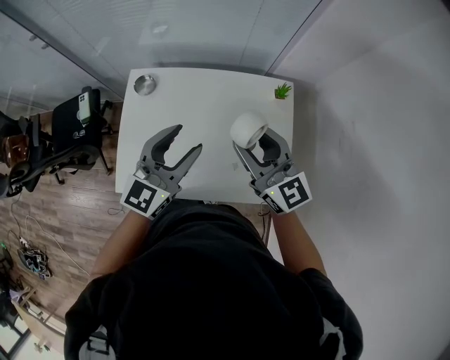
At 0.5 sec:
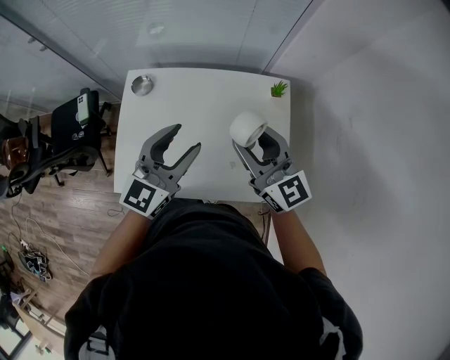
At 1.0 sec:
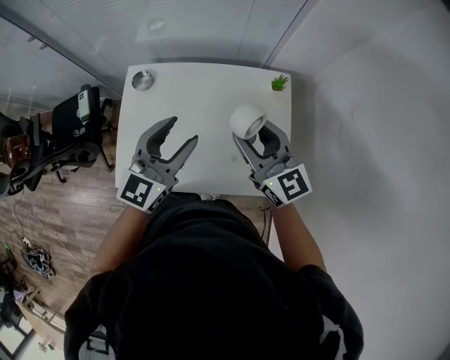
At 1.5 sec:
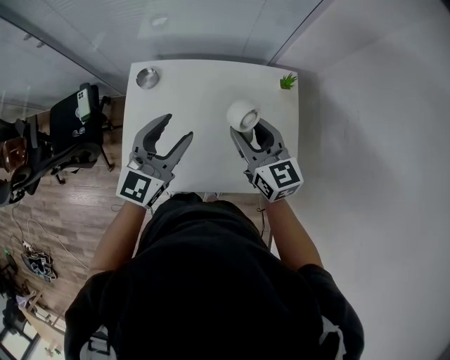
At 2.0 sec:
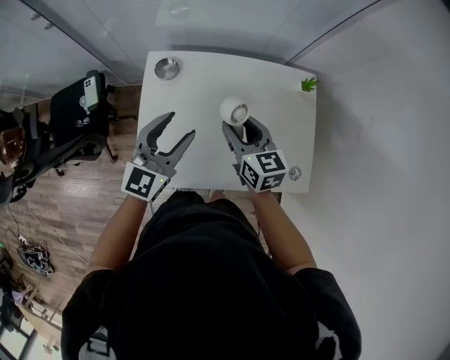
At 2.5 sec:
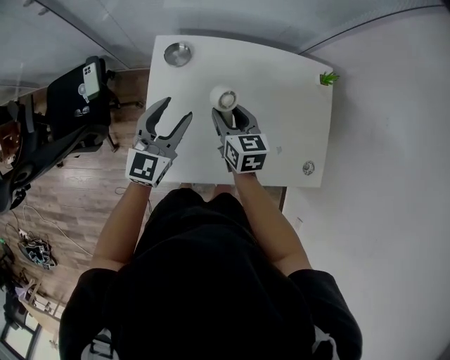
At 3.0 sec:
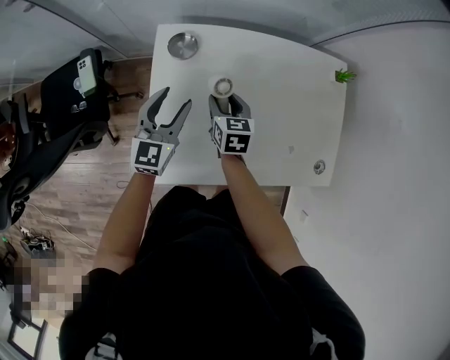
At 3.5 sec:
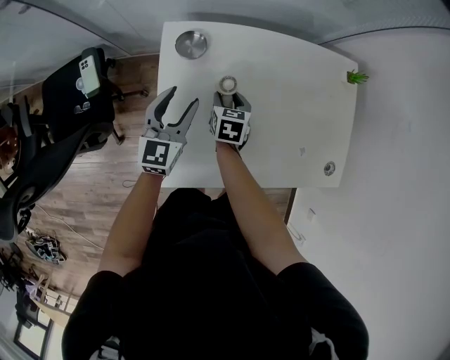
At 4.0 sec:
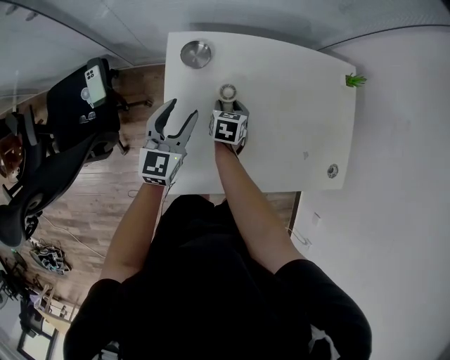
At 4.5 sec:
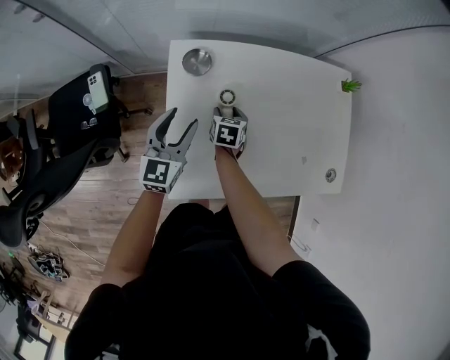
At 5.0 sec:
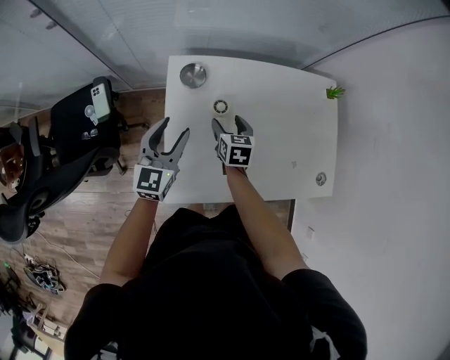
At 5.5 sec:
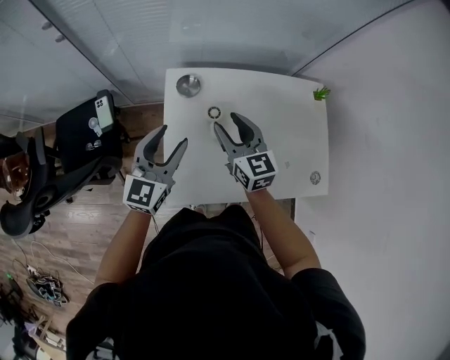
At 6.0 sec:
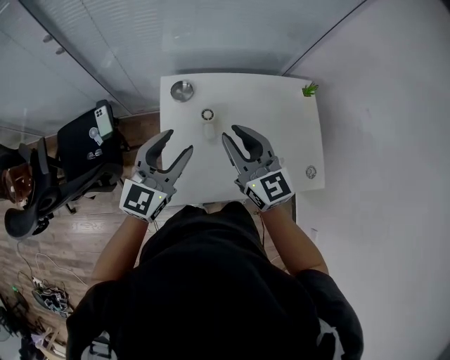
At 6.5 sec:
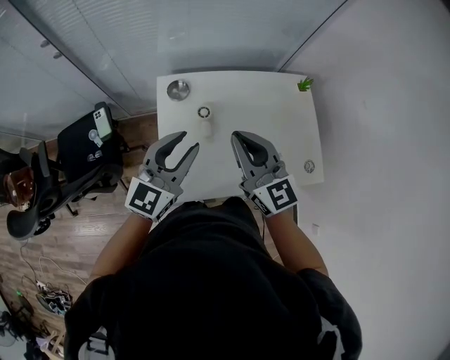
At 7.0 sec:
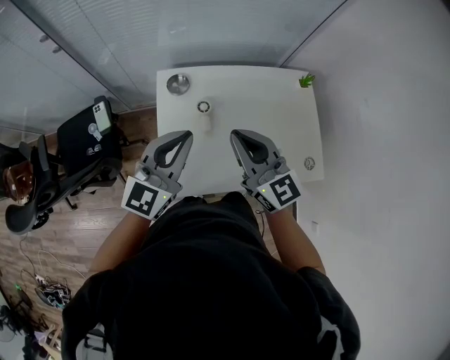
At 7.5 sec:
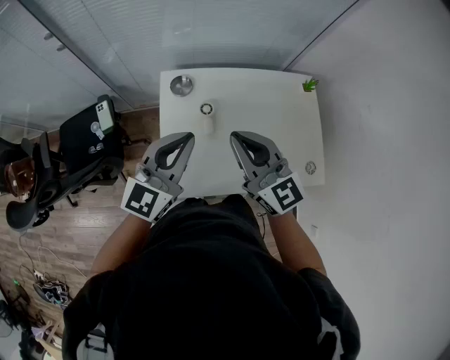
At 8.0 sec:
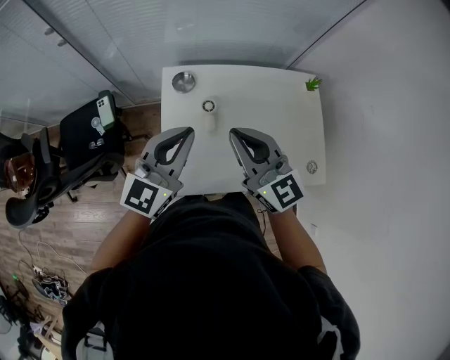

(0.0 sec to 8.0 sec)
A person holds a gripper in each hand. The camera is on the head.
0.0 sec - 2.0 sec: The left gripper moves to the left, roughly 15 cm, while the right gripper is displaced to the left and downward by approximately 20 cm, and swivels roughly 30 degrees.
2.0 sec - 4.0 sec: Both grippers move downward and to the left, some 30 cm. The right gripper tips its fingers downward by roughly 30 degrees.
4.0 sec - 6.0 sec: The left gripper goes approximately 25 cm upward and backward. Meanwhile the right gripper moves upward, about 40 cm, and tips its fingers upward by about 50 degrees.
6.0 sec - 8.0 sec: The left gripper closes up. Meanwhile the right gripper ends up about 5 cm from where it was.

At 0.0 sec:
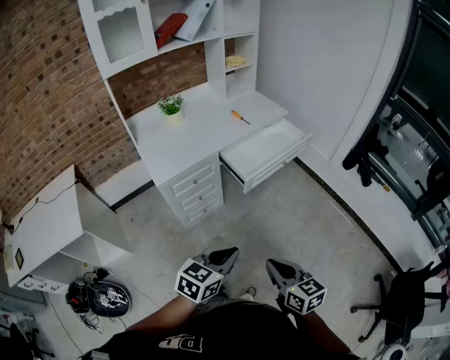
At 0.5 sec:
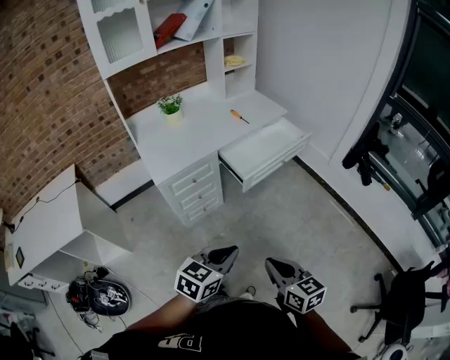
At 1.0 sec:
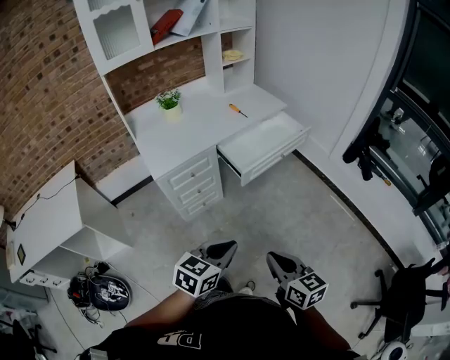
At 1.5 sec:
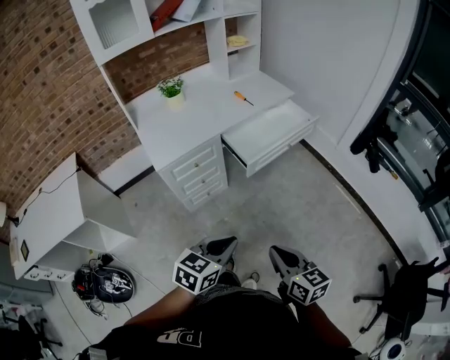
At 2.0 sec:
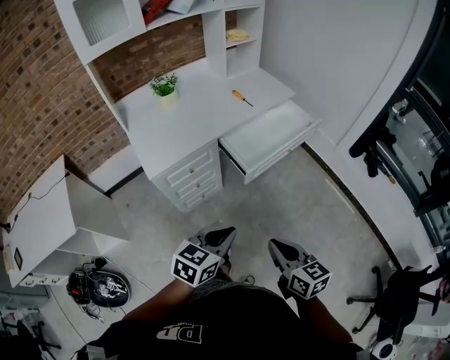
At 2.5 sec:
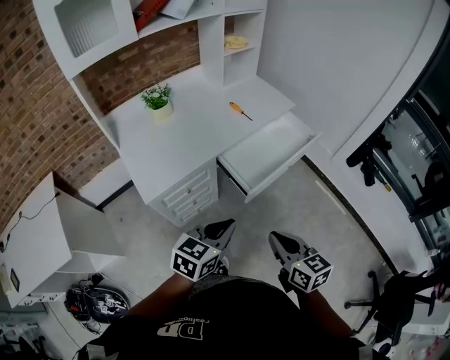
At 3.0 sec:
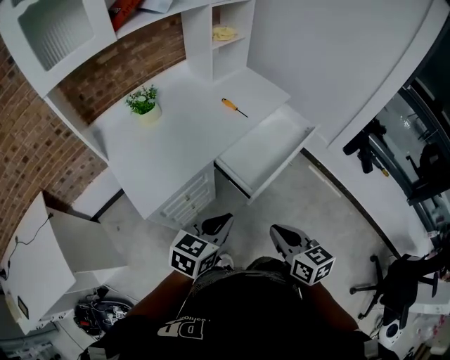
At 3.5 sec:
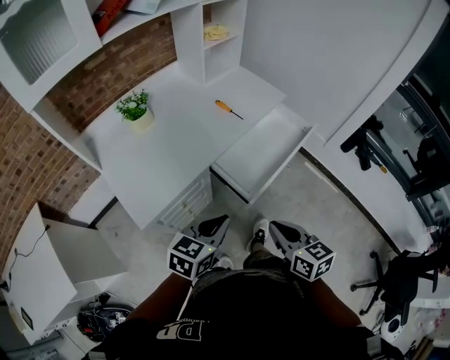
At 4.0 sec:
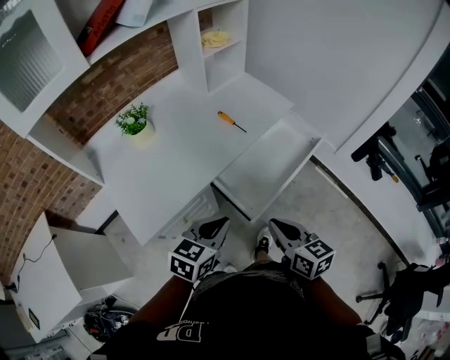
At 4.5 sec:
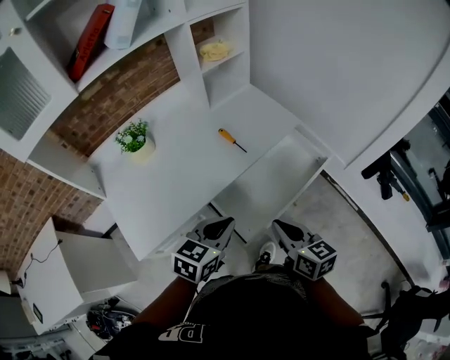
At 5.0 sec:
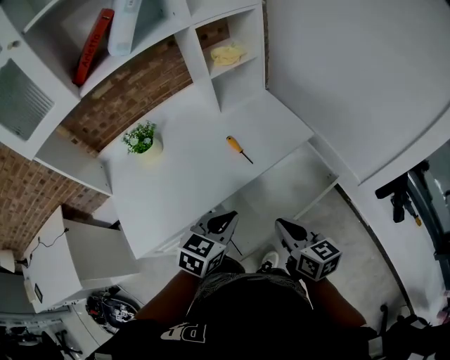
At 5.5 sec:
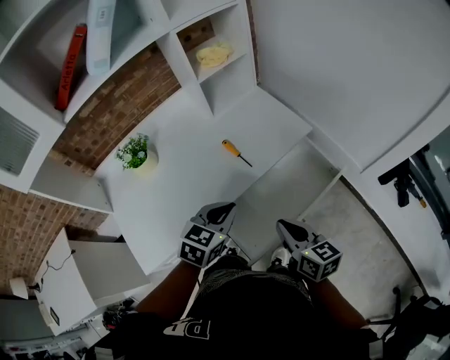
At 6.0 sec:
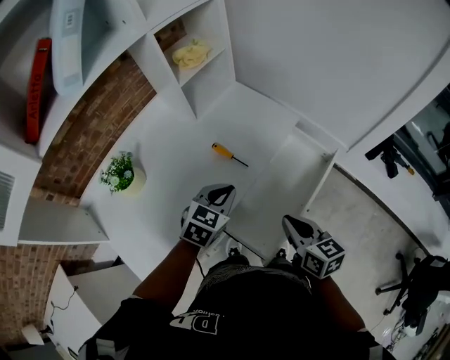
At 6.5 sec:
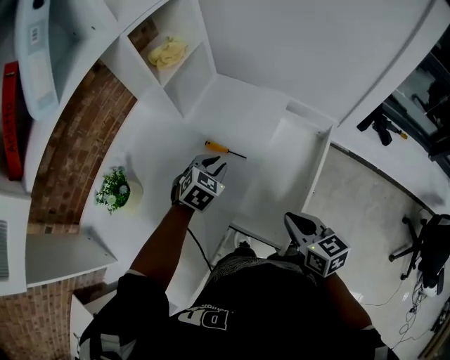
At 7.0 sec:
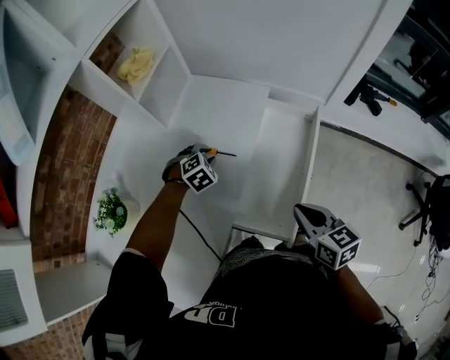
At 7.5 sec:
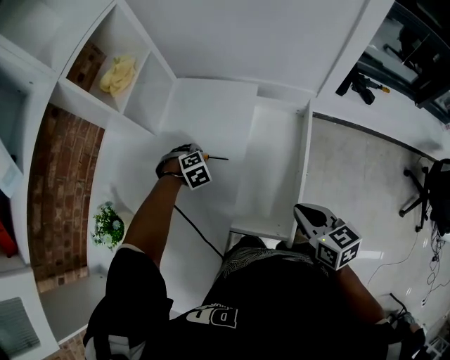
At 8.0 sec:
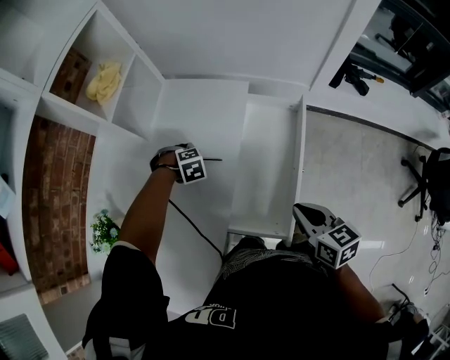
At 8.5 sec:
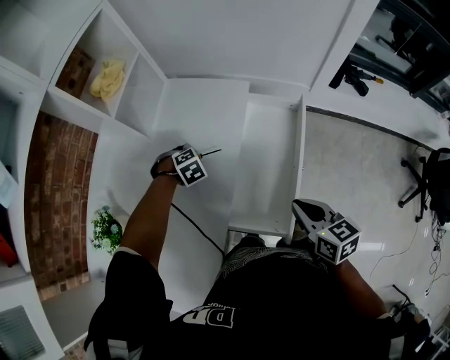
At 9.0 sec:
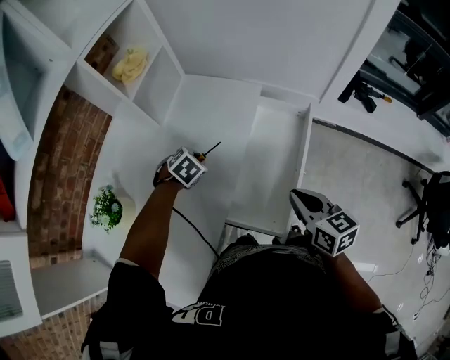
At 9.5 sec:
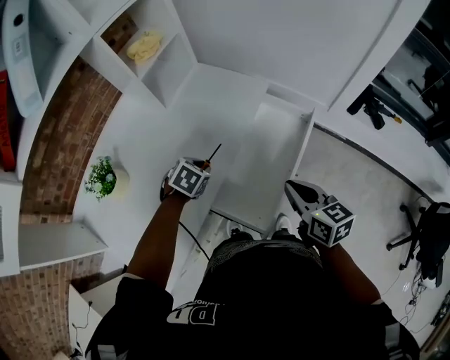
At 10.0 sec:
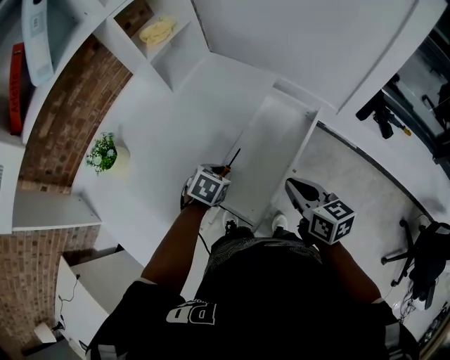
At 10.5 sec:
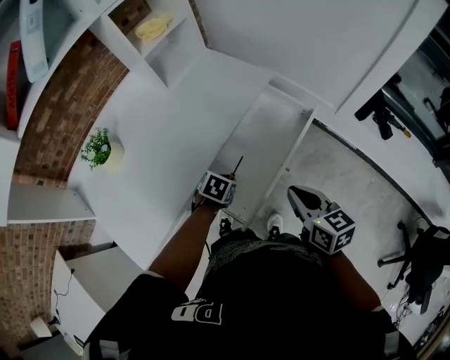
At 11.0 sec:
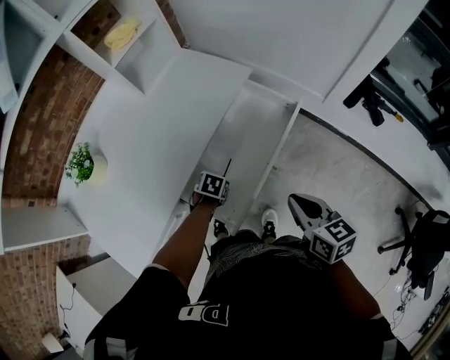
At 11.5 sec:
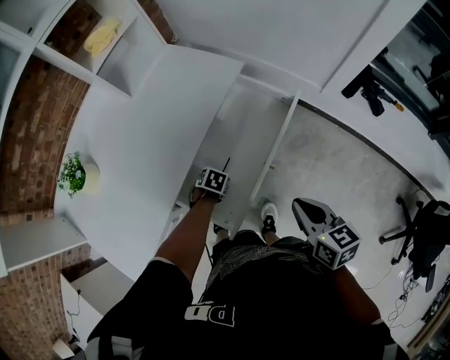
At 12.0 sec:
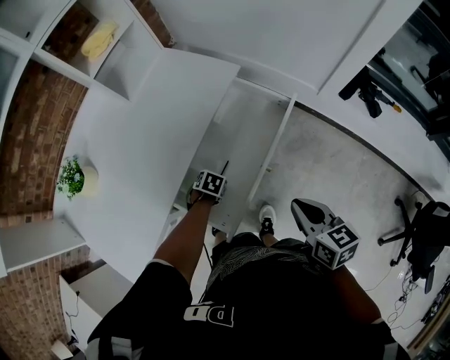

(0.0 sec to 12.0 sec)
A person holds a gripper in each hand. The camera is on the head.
0.0 sec - 2.0 sec: The grippers both shift forward by approximately 10 cm.
2.0 sec - 4.0 sec: The grippers both shift forward by approximately 30 cm.
4.0 sec - 6.0 sec: The two grippers go about 25 cm forward. The left gripper turns by about 20 degrees.
6.0 sec - 8.0 sec: The right gripper changes place by approximately 5 cm, and rotates some 20 degrees. Meanwhile the left gripper shifts some 20 cm downward, and tilts its fingers about 50 degrees downward.
8.0 sec - 10.0 sec: The left gripper shifts by some 25 cm, and rolls counterclockwise, seen from behind, by approximately 70 degrees; the right gripper shifts by some 5 cm, and turns by about 20 degrees.
10.0 sec - 12.0 sec: The right gripper moves about 10 cm. Meanwhile the left gripper heads downward, covering about 20 cm, and turns by some 20 degrees.

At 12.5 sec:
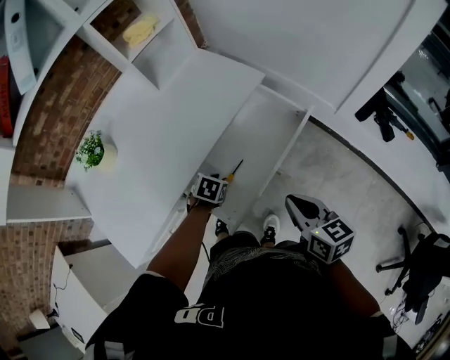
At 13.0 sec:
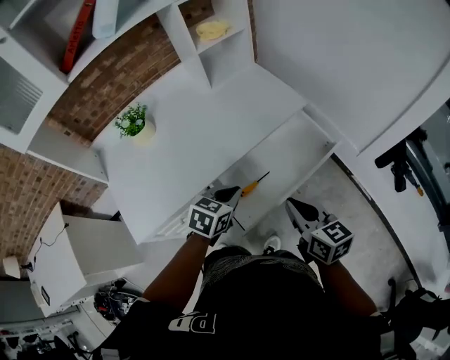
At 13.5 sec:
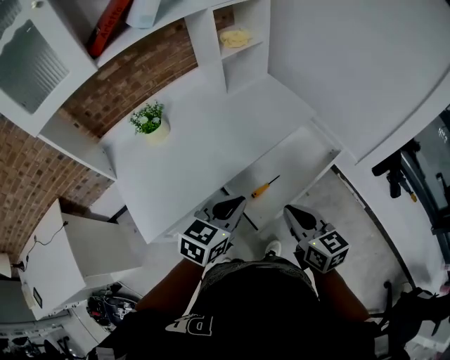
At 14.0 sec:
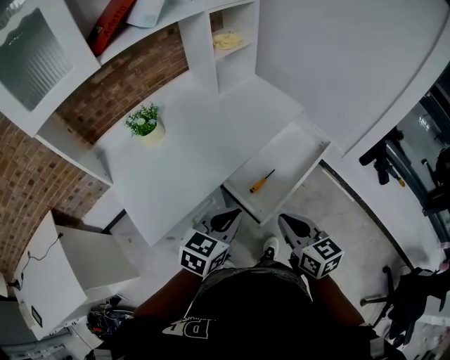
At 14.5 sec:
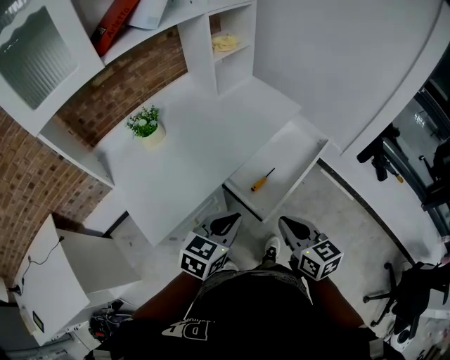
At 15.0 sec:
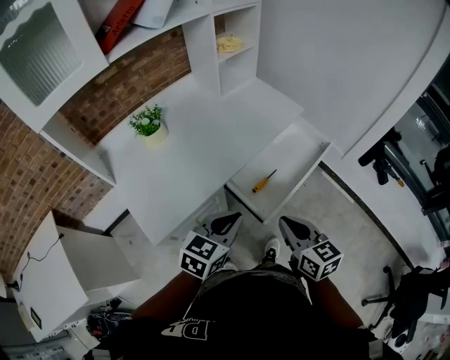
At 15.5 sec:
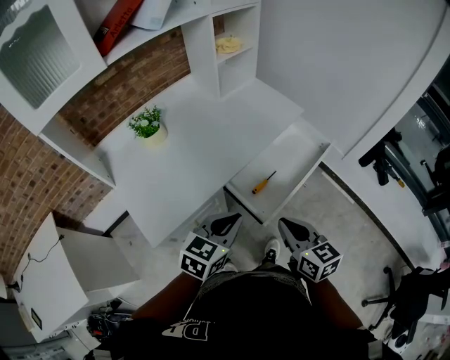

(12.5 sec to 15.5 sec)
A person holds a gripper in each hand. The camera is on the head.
12.5 sec - 14.0 sec: The left gripper heads upward and backward, covering approximately 35 cm, points its fingers approximately 40 degrees further upward, and closes up; the right gripper is displaced to the left and backward by roughly 20 cm.
14.0 sec - 15.5 sec: The grippers move only a little.

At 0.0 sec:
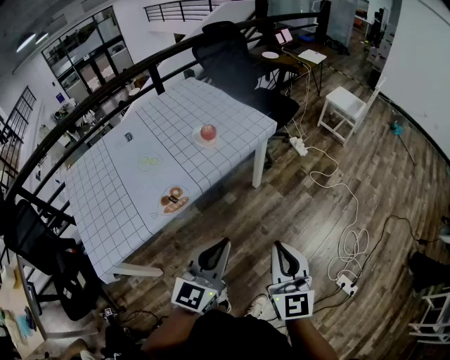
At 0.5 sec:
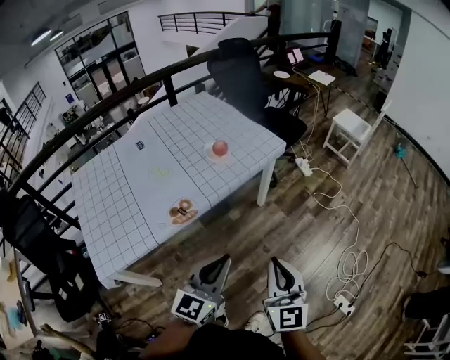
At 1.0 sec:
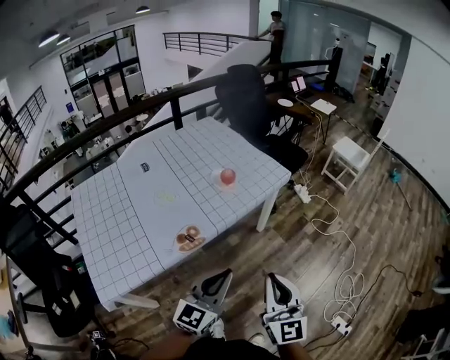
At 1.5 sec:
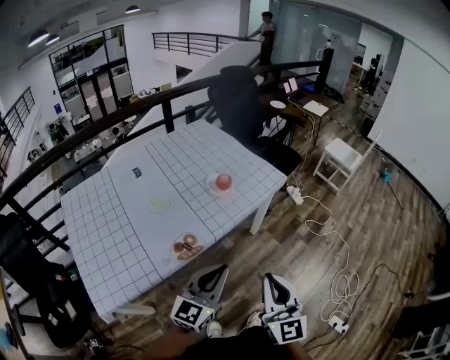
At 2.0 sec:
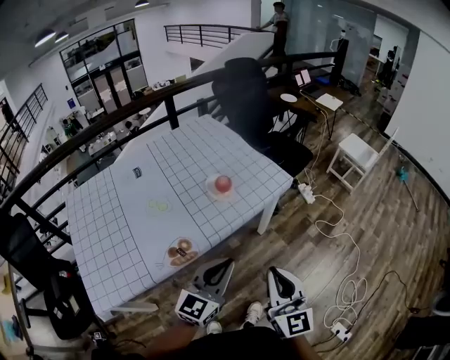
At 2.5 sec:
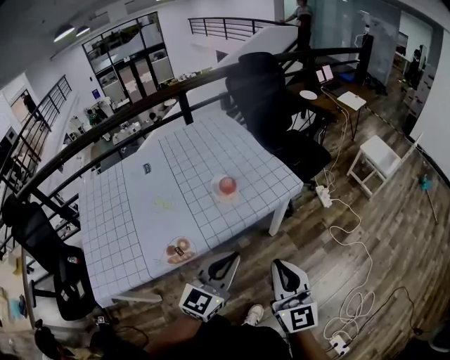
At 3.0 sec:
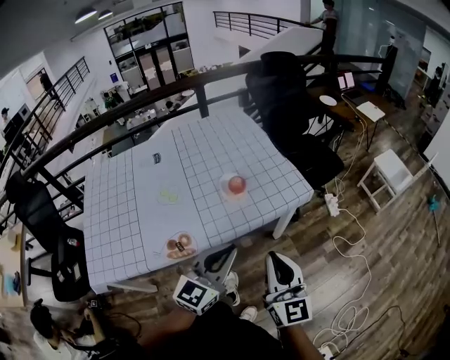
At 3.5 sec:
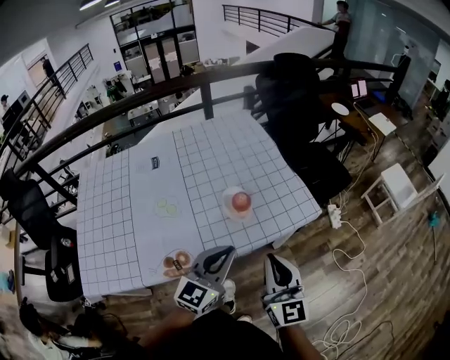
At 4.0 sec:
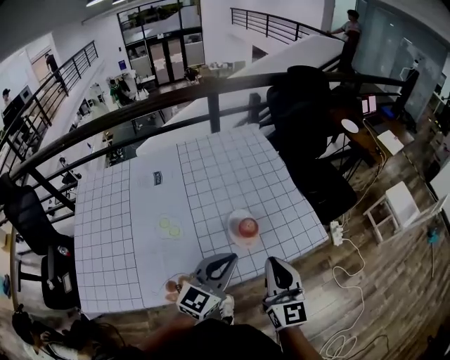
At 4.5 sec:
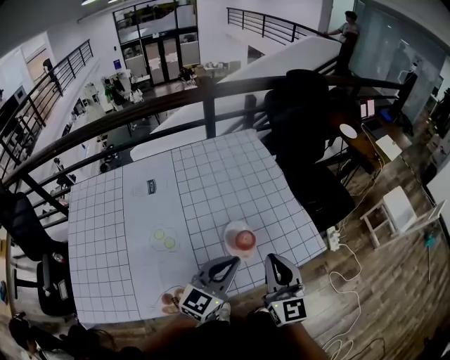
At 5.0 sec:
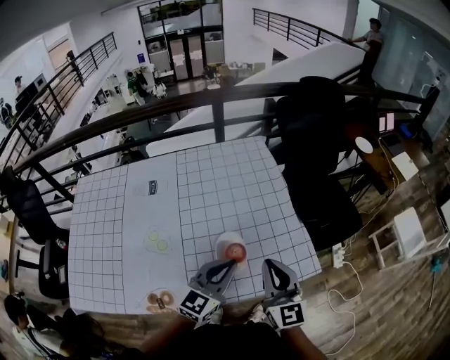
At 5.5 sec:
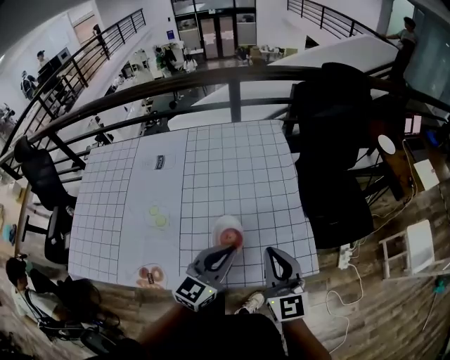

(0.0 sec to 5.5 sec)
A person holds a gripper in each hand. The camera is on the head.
0.0 sec - 2.0 sec: The left gripper is displaced forward by roughly 15 cm. Meanwhile the right gripper goes roughly 15 cm forward and to the left.
2.0 sec - 3.5 sec: Both grippers move forward, some 15 cm.
3.5 sec - 5.5 sec: The two grippers go some 20 cm forward.
